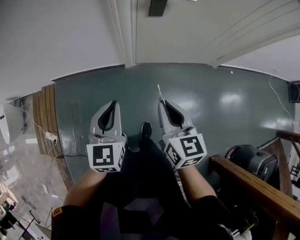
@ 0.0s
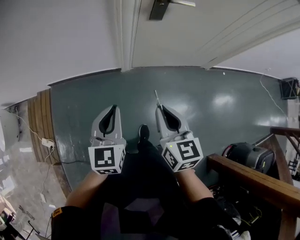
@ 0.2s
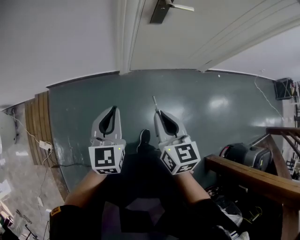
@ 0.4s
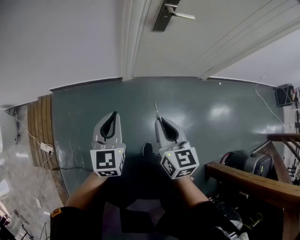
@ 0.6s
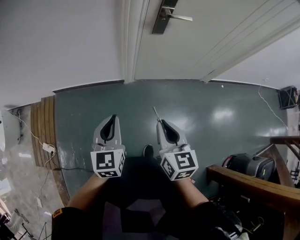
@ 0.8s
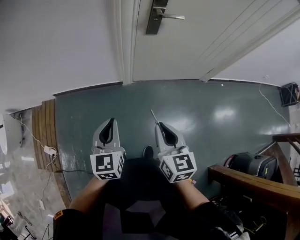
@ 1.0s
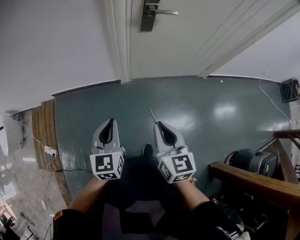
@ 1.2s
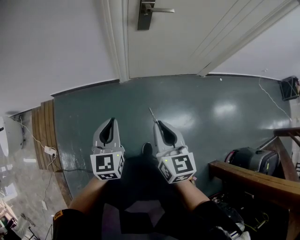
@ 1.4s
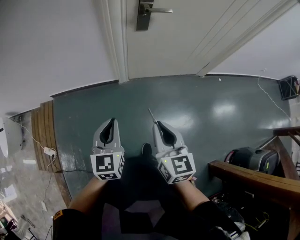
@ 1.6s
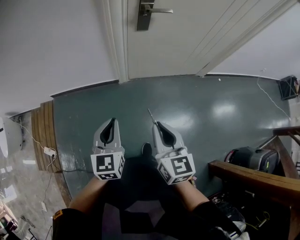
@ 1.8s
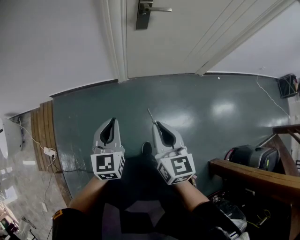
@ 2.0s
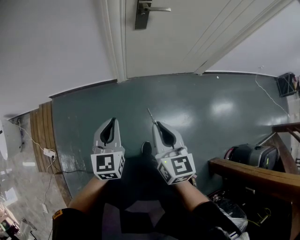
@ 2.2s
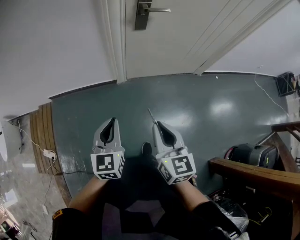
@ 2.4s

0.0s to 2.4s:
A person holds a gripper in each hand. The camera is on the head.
0.0s to 1.2s: The two grippers go approximately 10 cm backward.
1.2s to 2.4s: There are only small adjustments of the grippers.

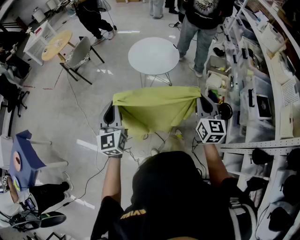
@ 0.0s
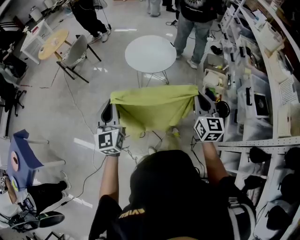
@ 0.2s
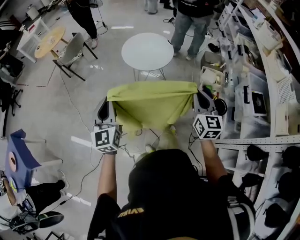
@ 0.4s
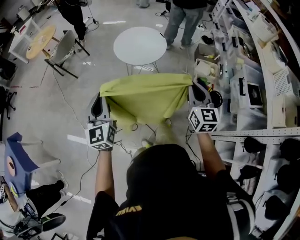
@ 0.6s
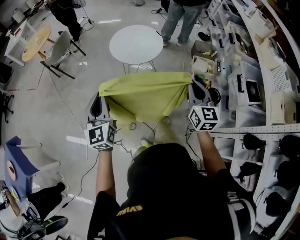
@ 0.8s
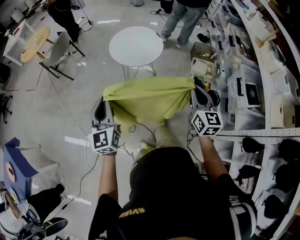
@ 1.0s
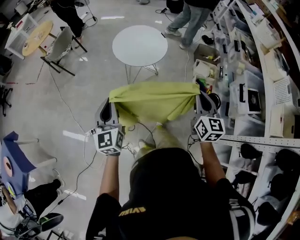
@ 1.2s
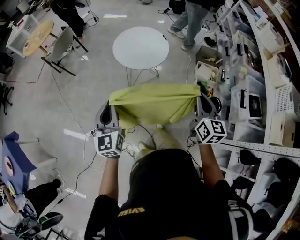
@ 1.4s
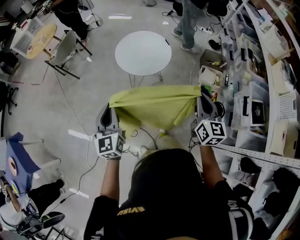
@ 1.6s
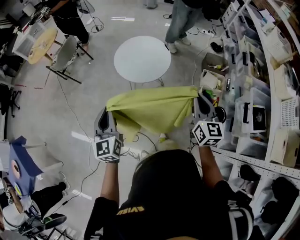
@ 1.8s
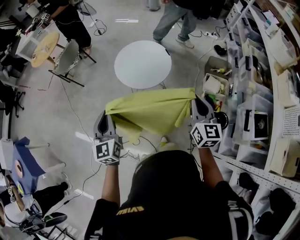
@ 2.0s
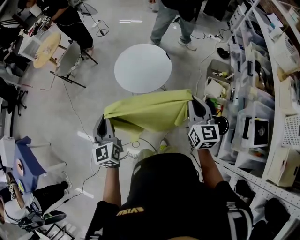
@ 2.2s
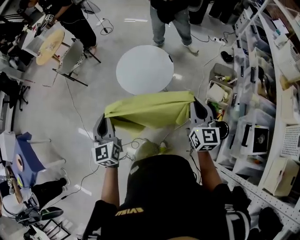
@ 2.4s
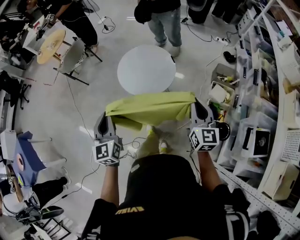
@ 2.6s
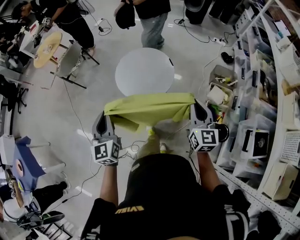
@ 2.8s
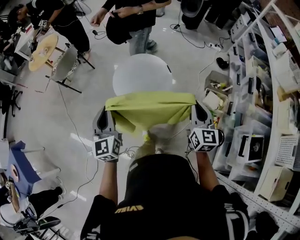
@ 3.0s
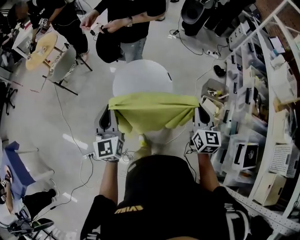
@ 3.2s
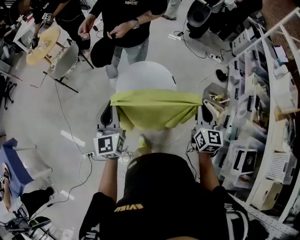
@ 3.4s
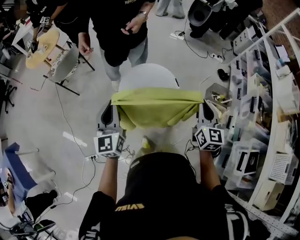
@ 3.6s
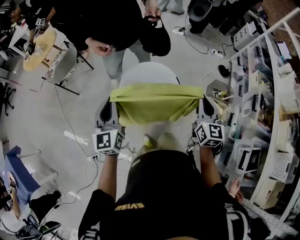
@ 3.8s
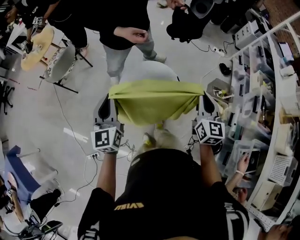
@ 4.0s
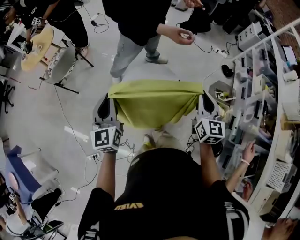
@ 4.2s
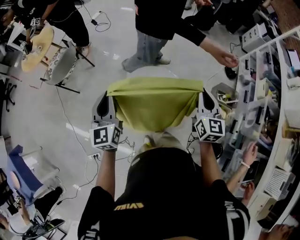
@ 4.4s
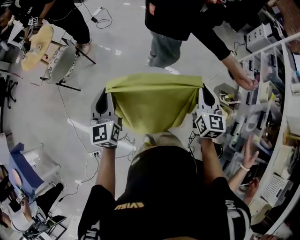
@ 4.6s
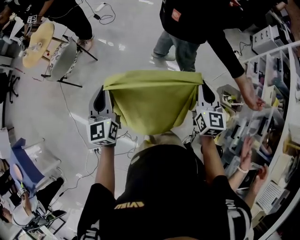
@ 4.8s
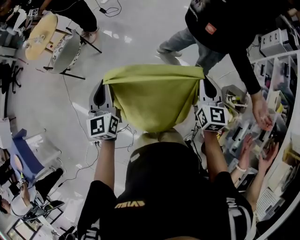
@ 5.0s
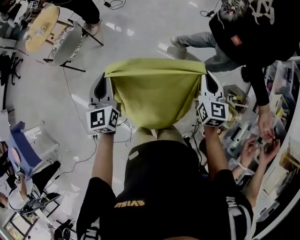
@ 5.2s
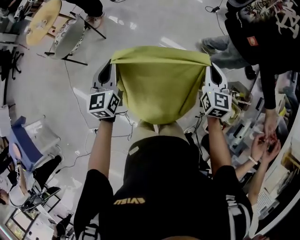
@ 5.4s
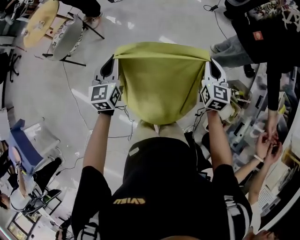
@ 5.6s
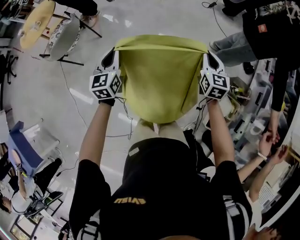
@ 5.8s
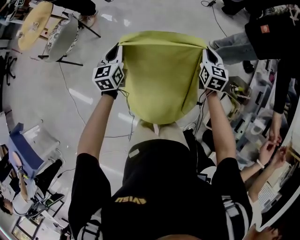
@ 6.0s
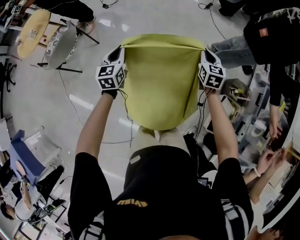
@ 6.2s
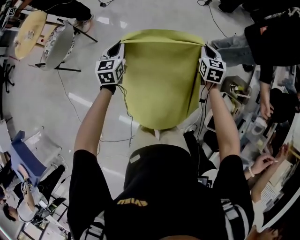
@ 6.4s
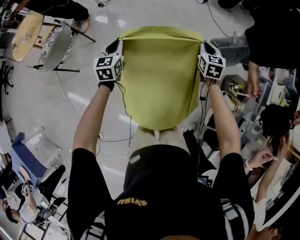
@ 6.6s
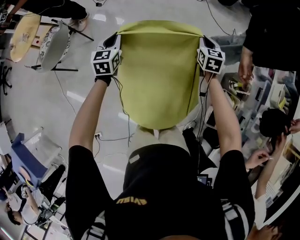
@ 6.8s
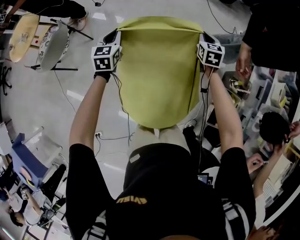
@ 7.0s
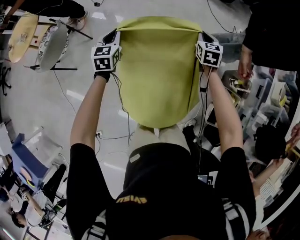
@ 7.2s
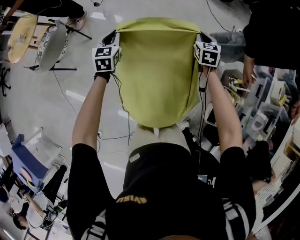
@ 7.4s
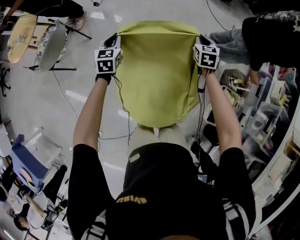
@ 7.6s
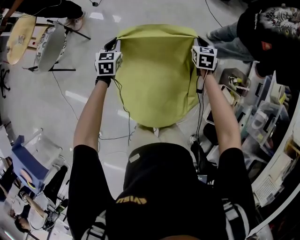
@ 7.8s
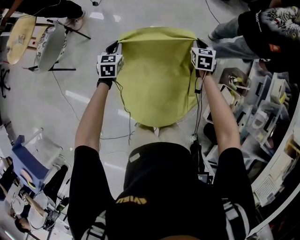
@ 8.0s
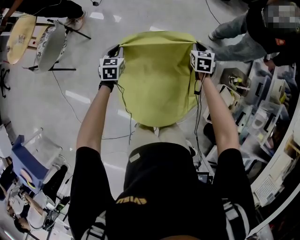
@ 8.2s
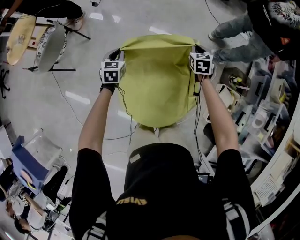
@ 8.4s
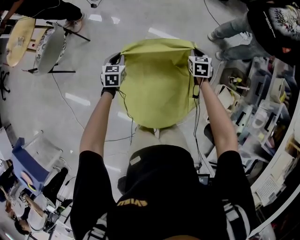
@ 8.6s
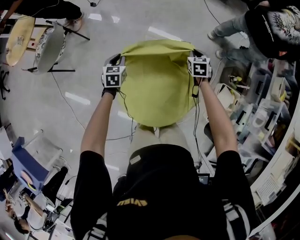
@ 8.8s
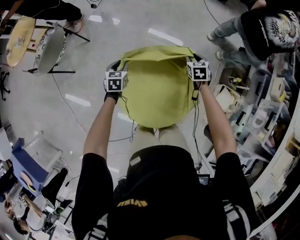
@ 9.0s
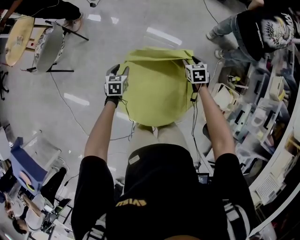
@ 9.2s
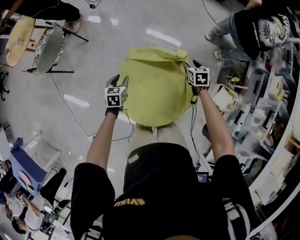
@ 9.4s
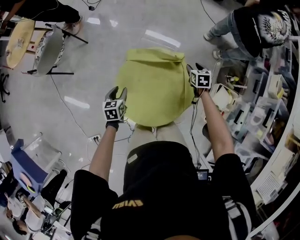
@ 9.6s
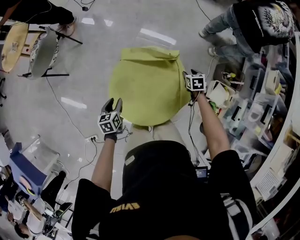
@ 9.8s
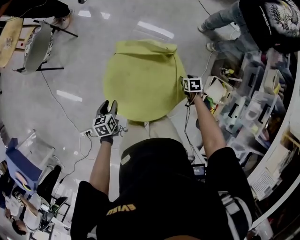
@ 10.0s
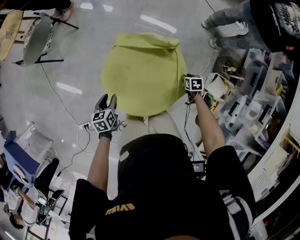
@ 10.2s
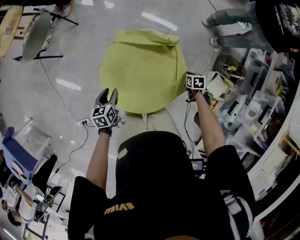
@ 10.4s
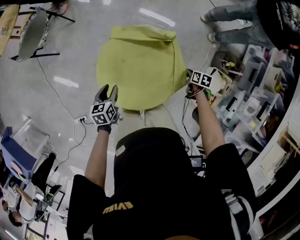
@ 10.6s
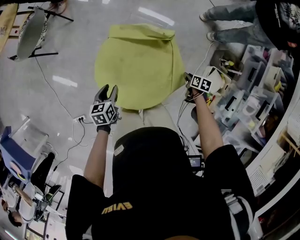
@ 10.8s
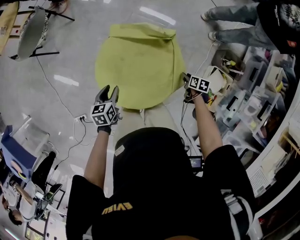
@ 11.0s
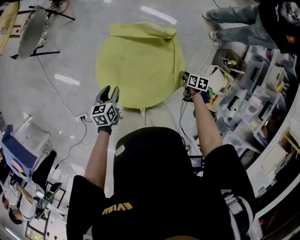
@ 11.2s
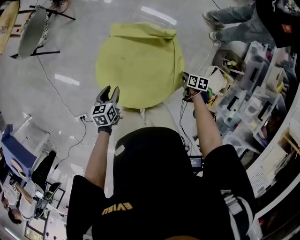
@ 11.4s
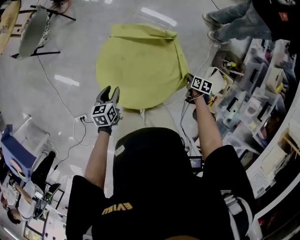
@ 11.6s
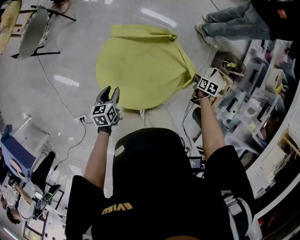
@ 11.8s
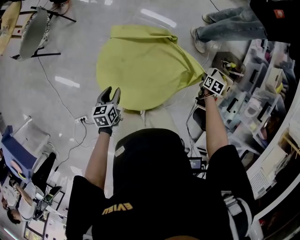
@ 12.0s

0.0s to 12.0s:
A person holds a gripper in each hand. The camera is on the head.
0.0s to 1.6s: Both grippers travel together forward, roughly 10 cm.
1.6s to 3.0s: The two grippers go some 25 cm forward.
3.0s to 4.4s: The two grippers go approximately 30 cm forward.
4.4s to 6.0s: Both grippers move forward and downward, approximately 30 cm.
6.0s to 7.6s: The grippers both shift forward and downward by about 15 cm. The left gripper turns by about 20 degrees.
7.6s to 9.0s: Both grippers move downward and backward, approximately 15 cm. The left gripper opens, while the right gripper opens up.
9.0s to 10.4s: The left gripper goes some 25 cm backward, and swivels approximately 20 degrees. Meanwhile the right gripper heads backward, downward and to the right, covering approximately 25 cm, turns by roughly 20 degrees, and closes up.
10.4s to 12.0s: The right gripper heads to the right, covering approximately 15 cm, turns by some 30 degrees, and opens, then closes once more.

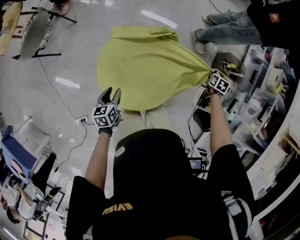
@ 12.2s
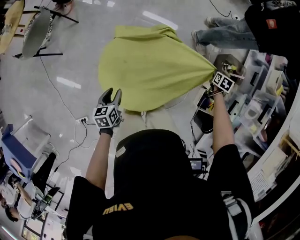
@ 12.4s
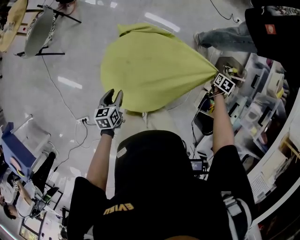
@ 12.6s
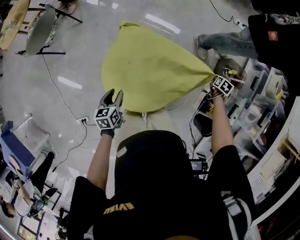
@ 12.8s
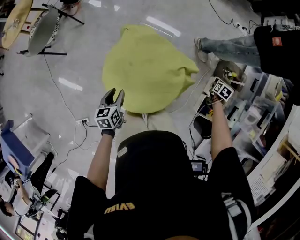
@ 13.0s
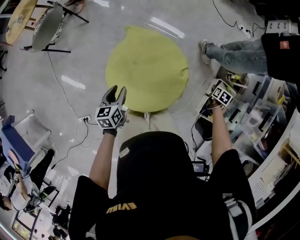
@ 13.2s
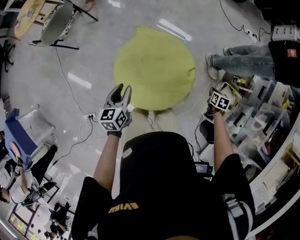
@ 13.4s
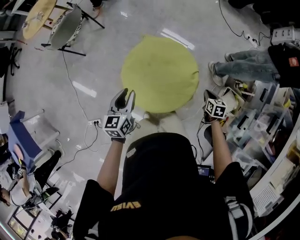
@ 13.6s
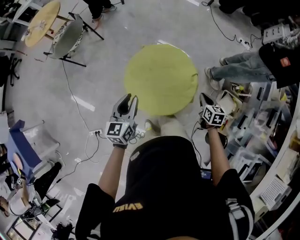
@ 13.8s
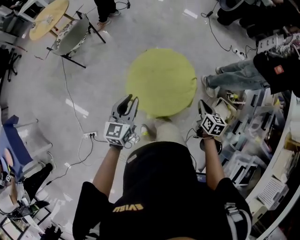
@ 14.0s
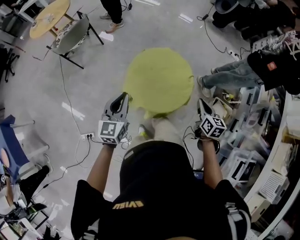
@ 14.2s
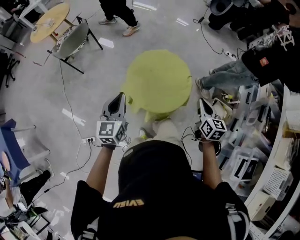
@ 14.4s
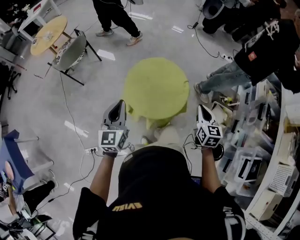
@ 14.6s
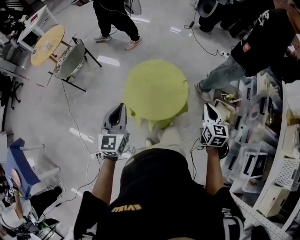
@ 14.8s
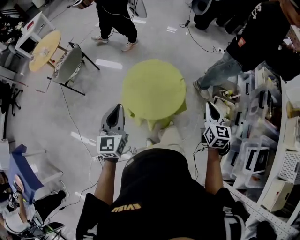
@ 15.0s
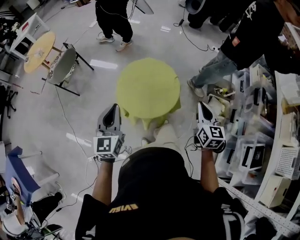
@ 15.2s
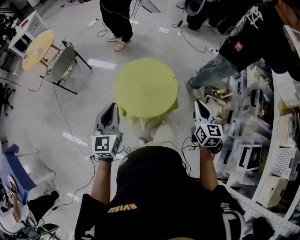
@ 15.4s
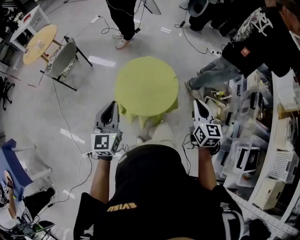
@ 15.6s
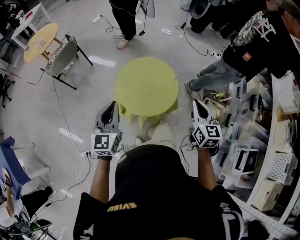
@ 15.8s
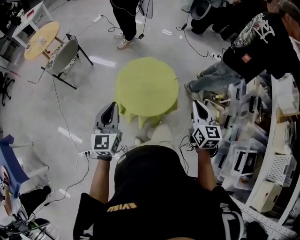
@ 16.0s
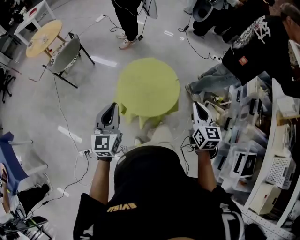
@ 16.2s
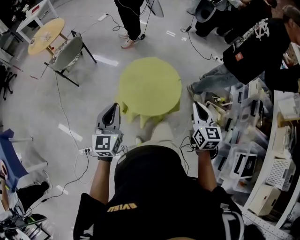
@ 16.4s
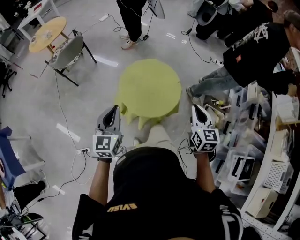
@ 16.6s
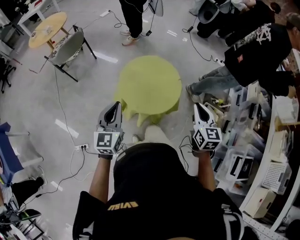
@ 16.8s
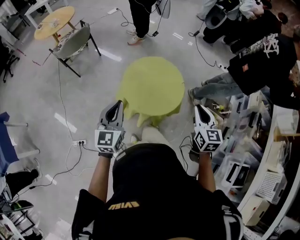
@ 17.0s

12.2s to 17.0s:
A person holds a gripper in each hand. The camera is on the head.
12.2s to 13.8s: The right gripper shifts by roughly 30 cm, and changes its angle by approximately 30 degrees; the left gripper moves upward, some 20 cm, and rotates about 30 degrees.
13.8s to 15.4s: The right gripper shifts about 30 cm upward and backward, and swivels approximately 30 degrees. The left gripper shifts approximately 20 cm backward and upward, swivels roughly 20 degrees, and closes.
15.4s to 17.0s: There are only small adjustments of the grippers.

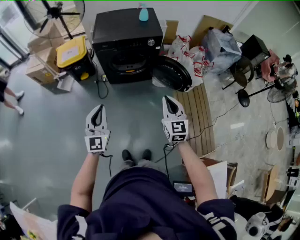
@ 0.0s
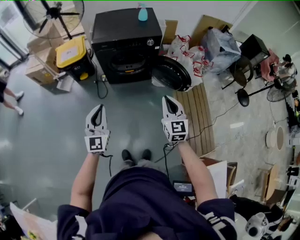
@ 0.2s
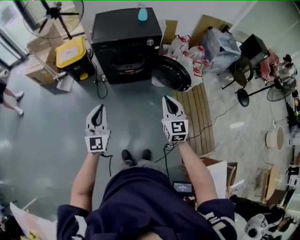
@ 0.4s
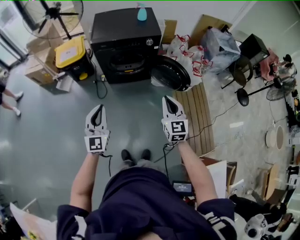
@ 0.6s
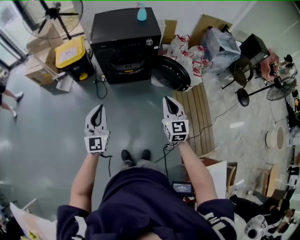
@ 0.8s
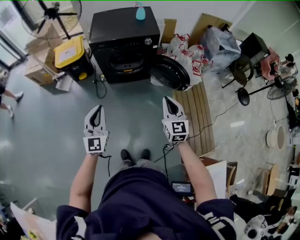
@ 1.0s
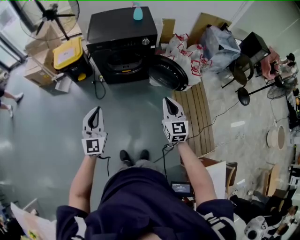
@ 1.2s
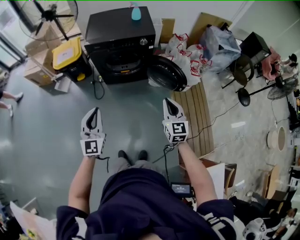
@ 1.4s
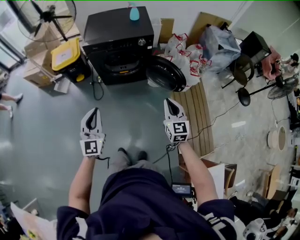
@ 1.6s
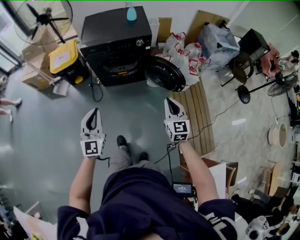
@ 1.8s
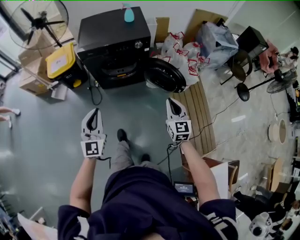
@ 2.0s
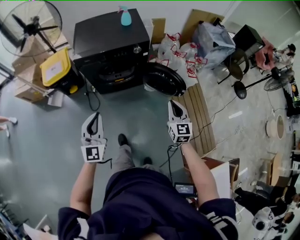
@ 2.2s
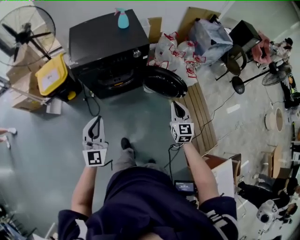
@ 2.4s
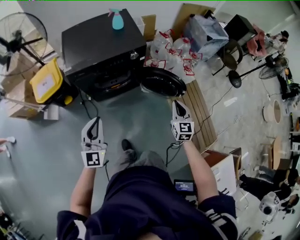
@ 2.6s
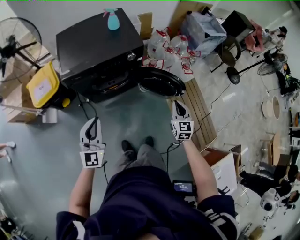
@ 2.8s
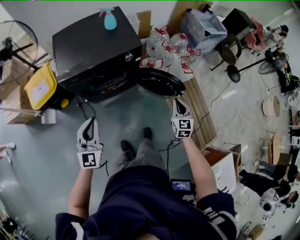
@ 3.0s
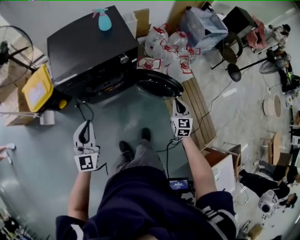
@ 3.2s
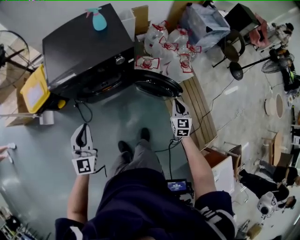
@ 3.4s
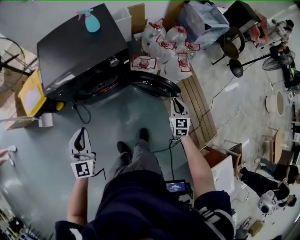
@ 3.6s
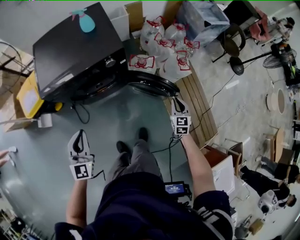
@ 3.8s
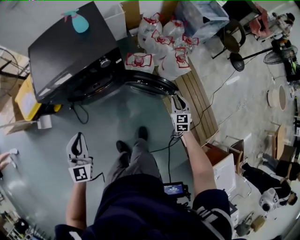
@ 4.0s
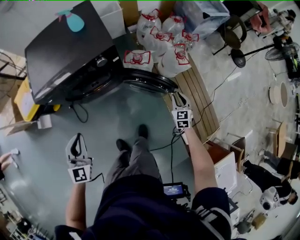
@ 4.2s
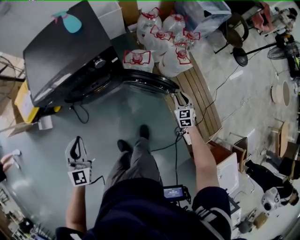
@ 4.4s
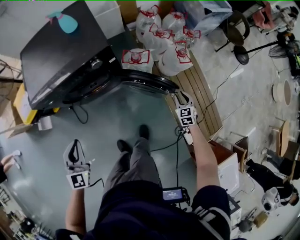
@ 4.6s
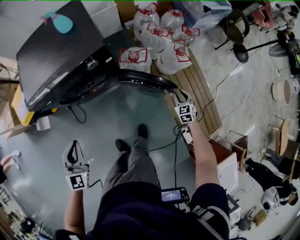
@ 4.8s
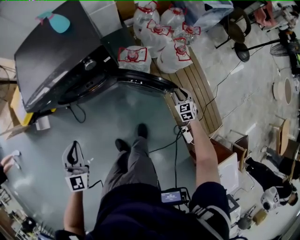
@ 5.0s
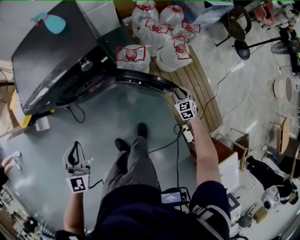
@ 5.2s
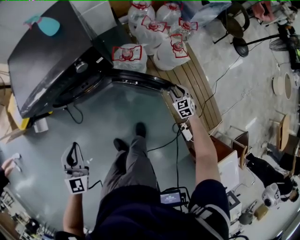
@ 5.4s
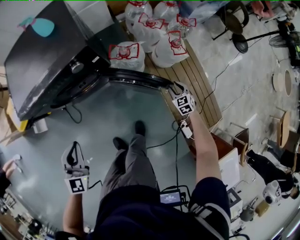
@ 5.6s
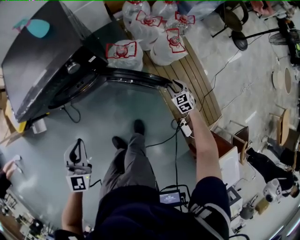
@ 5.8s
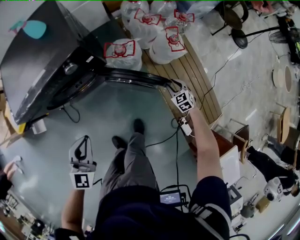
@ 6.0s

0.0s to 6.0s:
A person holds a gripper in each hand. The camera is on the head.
0.0s to 1.6s: The right gripper is displaced to the right and downward by some 10 cm. The left gripper is displaced to the right by some 5 cm.
1.6s to 3.0s: The right gripper goes approximately 25 cm forward and downward, and rotates some 20 degrees. The left gripper goes approximately 30 cm forward.
3.0s to 4.4s: The left gripper heads downward, forward and to the right, covering some 15 cm; the right gripper travels downward, to the right and forward by about 30 cm, and opens its fingers.
4.4s to 6.0s: The right gripper heads downward, covering roughly 15 cm. Meanwhile the left gripper shifts approximately 15 cm to the right, downward and forward.
